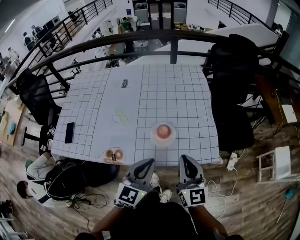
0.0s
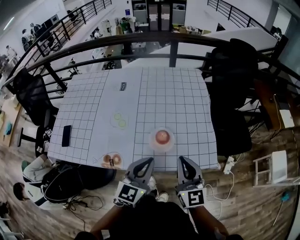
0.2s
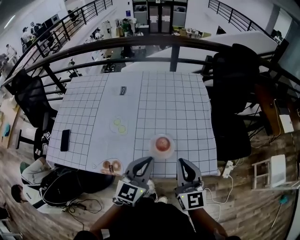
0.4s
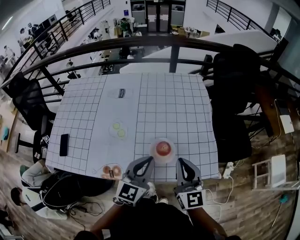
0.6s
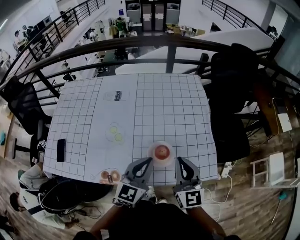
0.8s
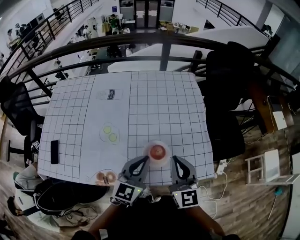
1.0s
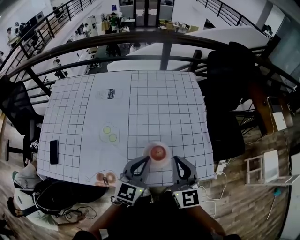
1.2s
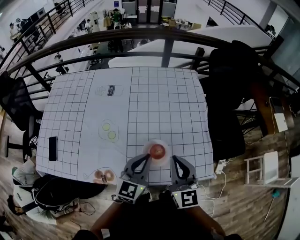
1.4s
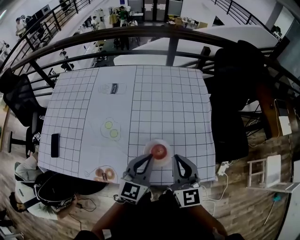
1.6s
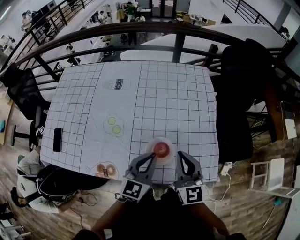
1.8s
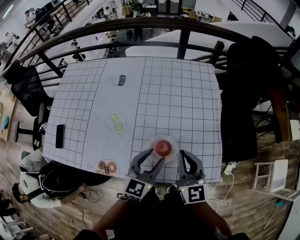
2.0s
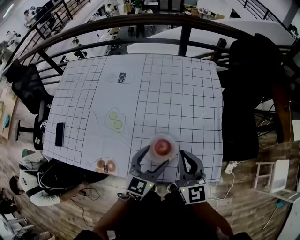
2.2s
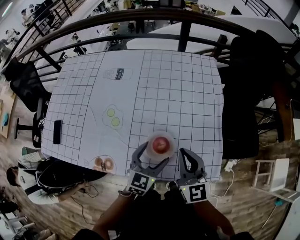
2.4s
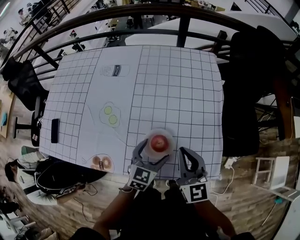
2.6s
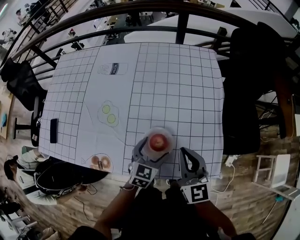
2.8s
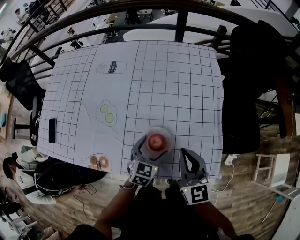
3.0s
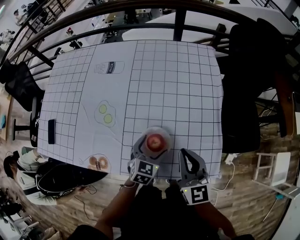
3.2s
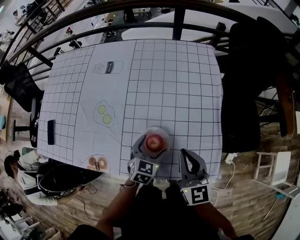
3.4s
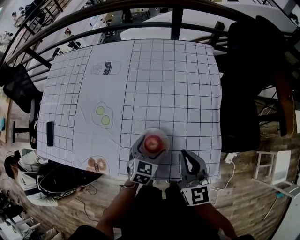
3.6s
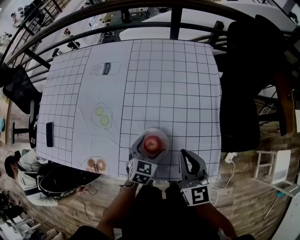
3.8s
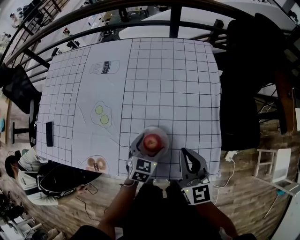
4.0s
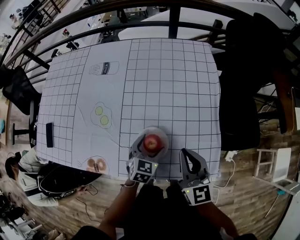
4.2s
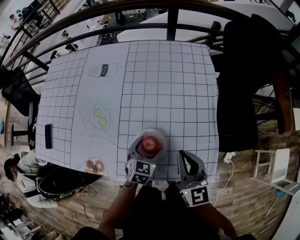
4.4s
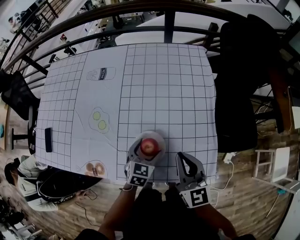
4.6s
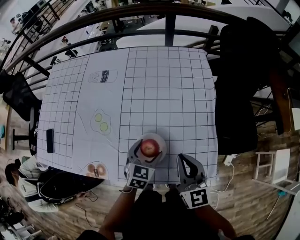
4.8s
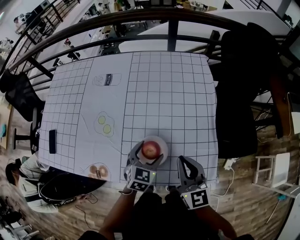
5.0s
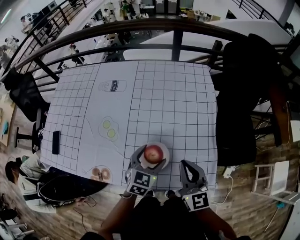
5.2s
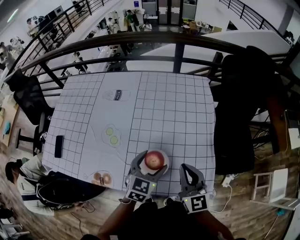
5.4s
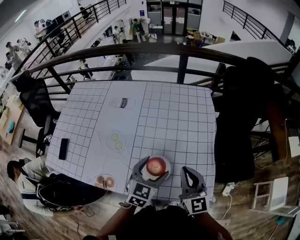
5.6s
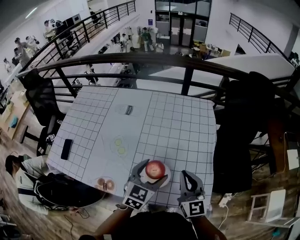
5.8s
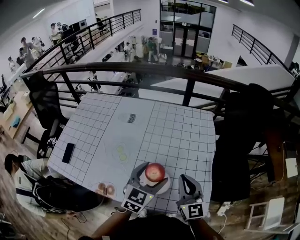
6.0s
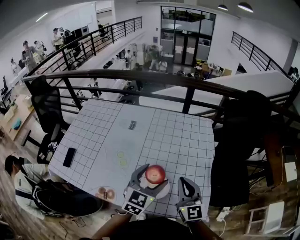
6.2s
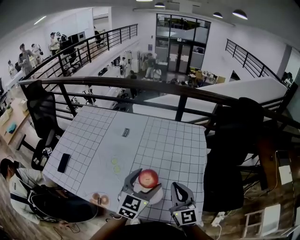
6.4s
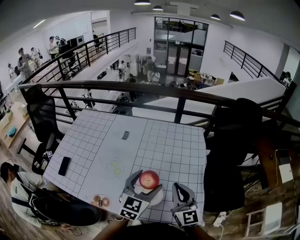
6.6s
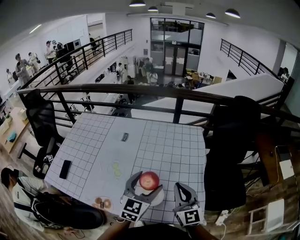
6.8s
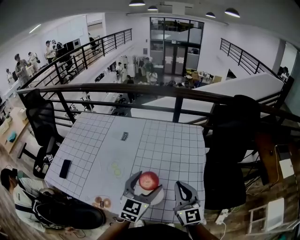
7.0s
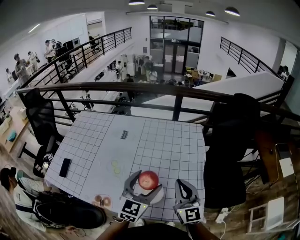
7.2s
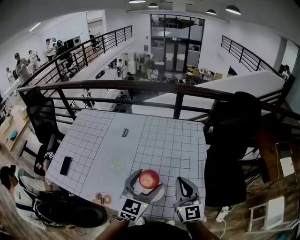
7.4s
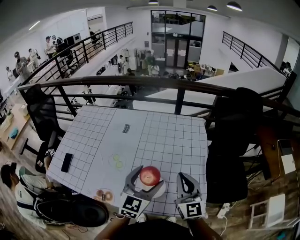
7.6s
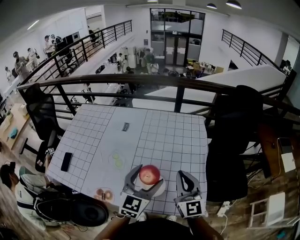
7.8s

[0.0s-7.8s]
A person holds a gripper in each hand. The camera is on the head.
0.0s to 1.6s: The grippers both shift forward by roughly 15 cm.
1.6s to 3.2s: The left gripper moves downward, roughly 20 cm, changes its angle by about 30 degrees, and opens its fingers. Meanwhile the right gripper heads downward and to the right, covering some 10 cm.
3.2s to 4.6s: There are only small adjustments of the grippers.
4.6s to 6.2s: The left gripper moves upward, some 25 cm, and swivels approximately 20 degrees; the right gripper is displaced upward by roughly 10 cm.
6.2s to 7.8s: The grippers move only a little.

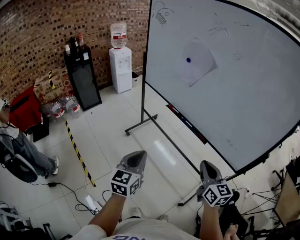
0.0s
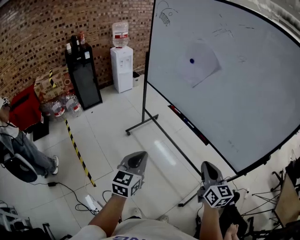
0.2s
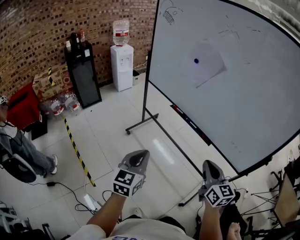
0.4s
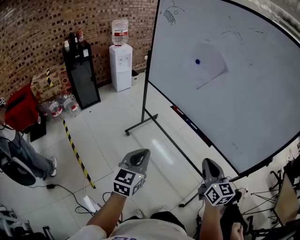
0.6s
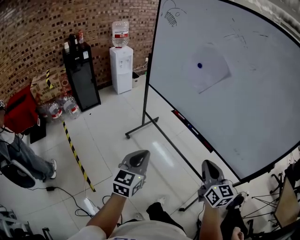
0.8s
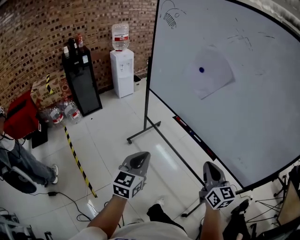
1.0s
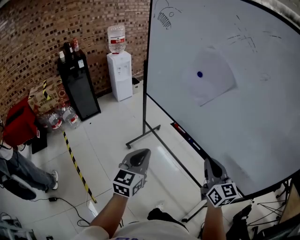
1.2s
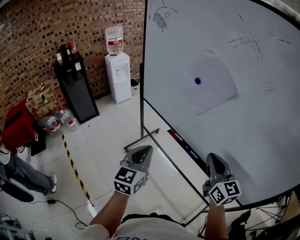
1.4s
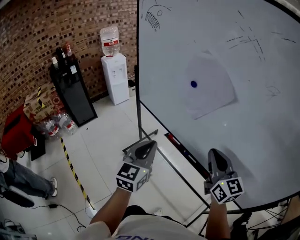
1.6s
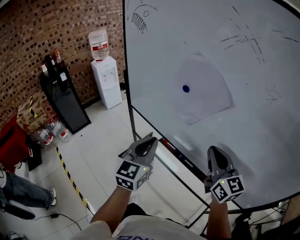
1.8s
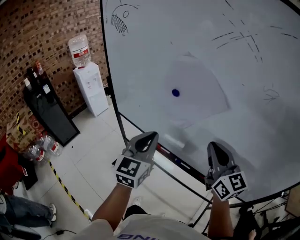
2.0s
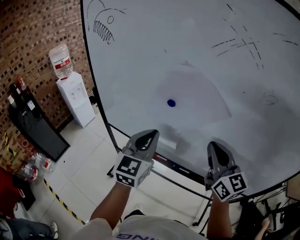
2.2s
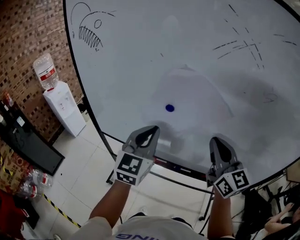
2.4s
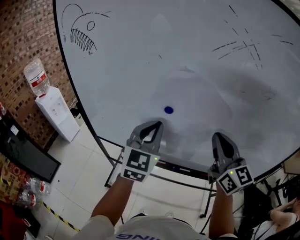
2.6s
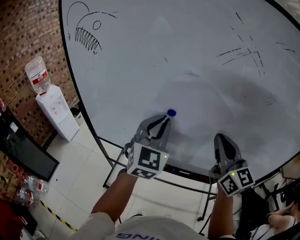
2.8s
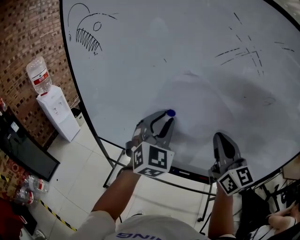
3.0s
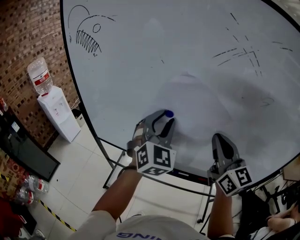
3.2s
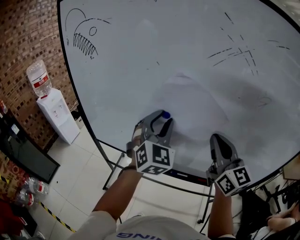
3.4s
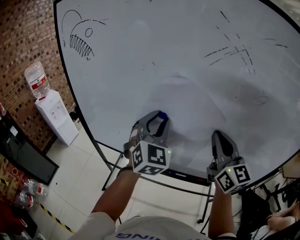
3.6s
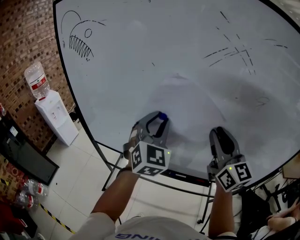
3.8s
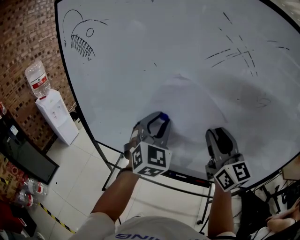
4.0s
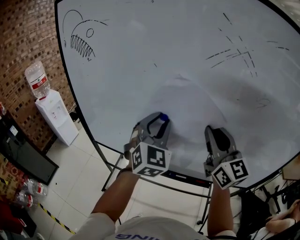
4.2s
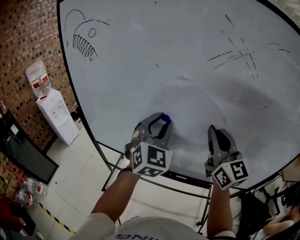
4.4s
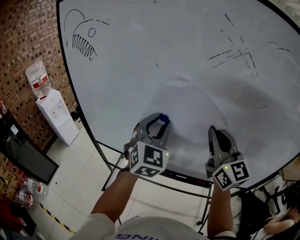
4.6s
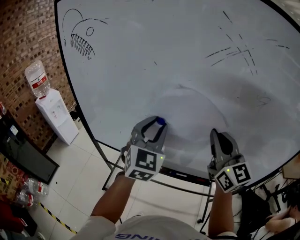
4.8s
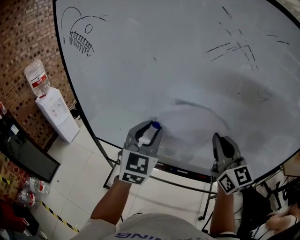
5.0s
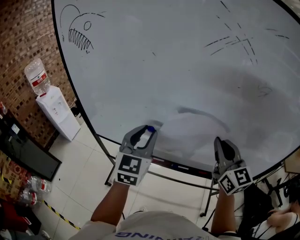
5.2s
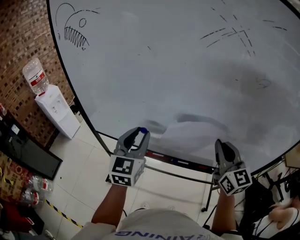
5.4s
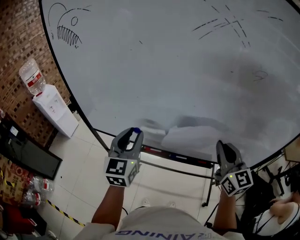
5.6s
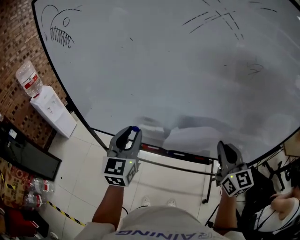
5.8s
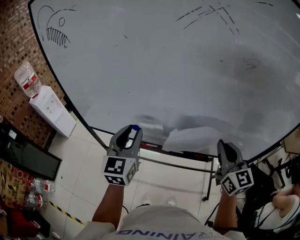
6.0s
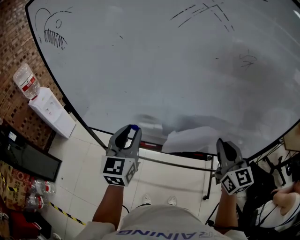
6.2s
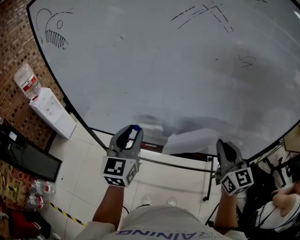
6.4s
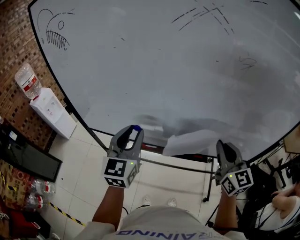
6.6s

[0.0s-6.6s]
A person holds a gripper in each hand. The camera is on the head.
0.0s to 1.6s: The two grippers go some 30 cm forward.
1.6s to 3.2s: The left gripper changes place by about 30 cm, turns by about 40 degrees, and opens. The right gripper changes place by approximately 15 cm, and rotates roughly 30 degrees.
3.2s to 5.0s: The right gripper opens, then closes once more.
5.0s to 6.6s: The left gripper moves downward and backward, some 10 cm; the right gripper heads downward, to the right and backward, covering some 15 cm.

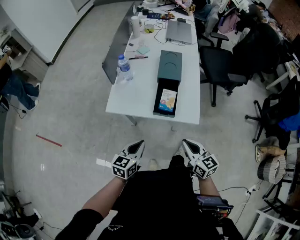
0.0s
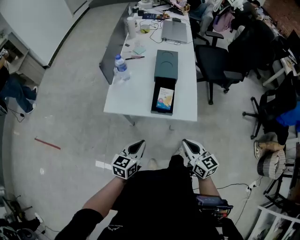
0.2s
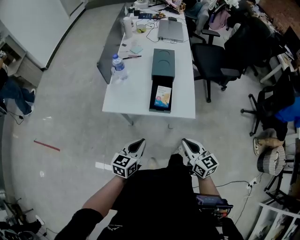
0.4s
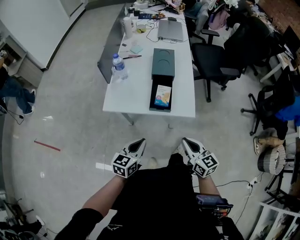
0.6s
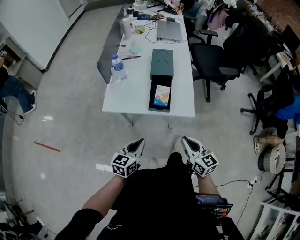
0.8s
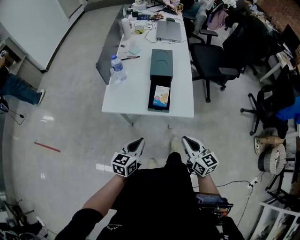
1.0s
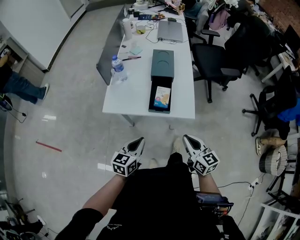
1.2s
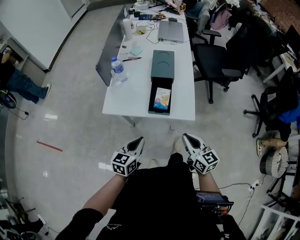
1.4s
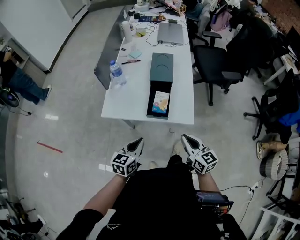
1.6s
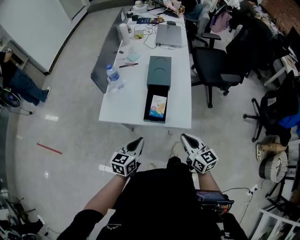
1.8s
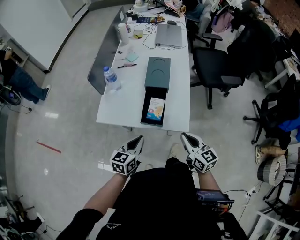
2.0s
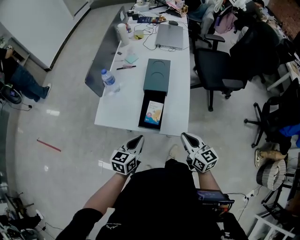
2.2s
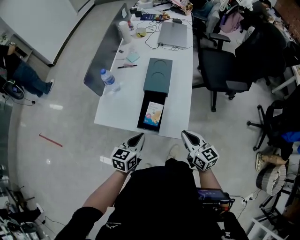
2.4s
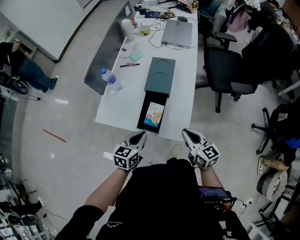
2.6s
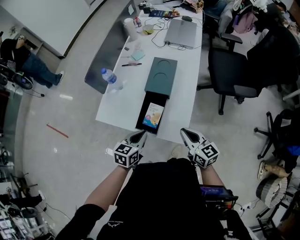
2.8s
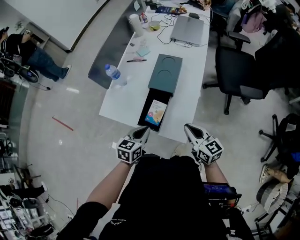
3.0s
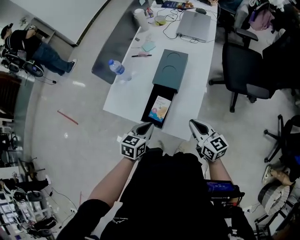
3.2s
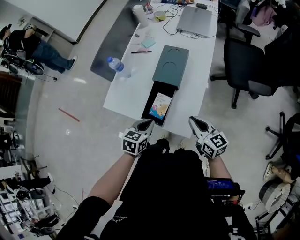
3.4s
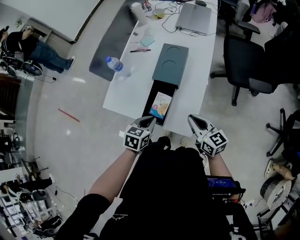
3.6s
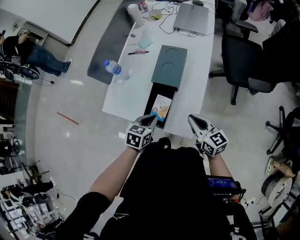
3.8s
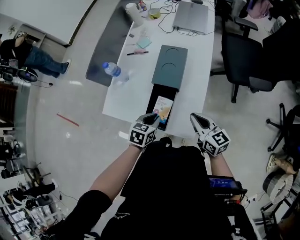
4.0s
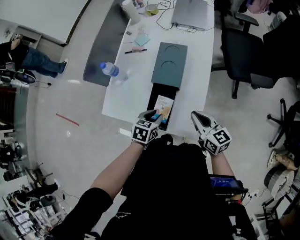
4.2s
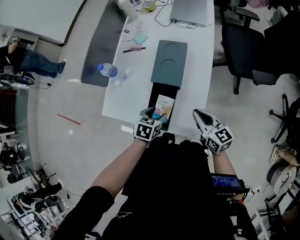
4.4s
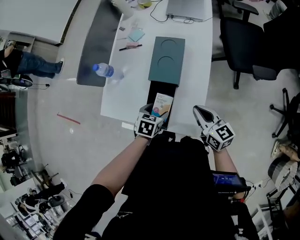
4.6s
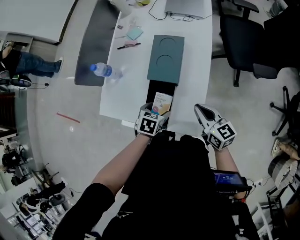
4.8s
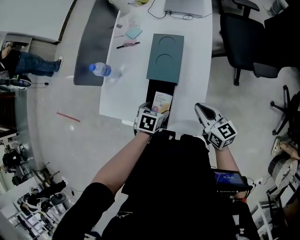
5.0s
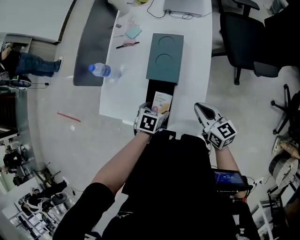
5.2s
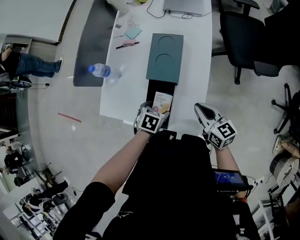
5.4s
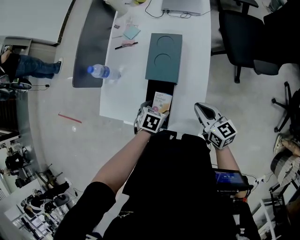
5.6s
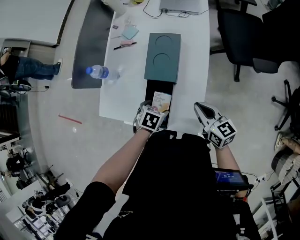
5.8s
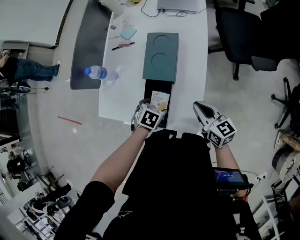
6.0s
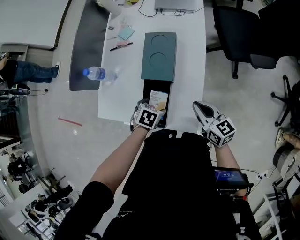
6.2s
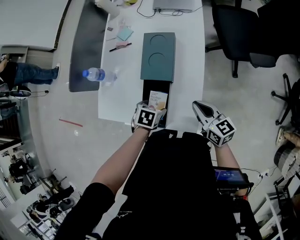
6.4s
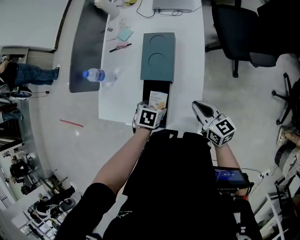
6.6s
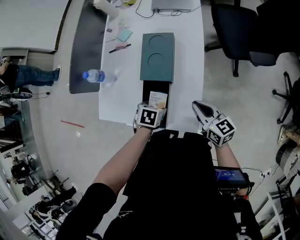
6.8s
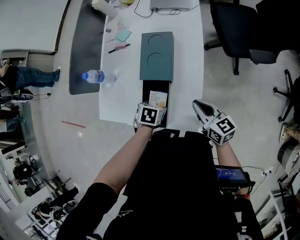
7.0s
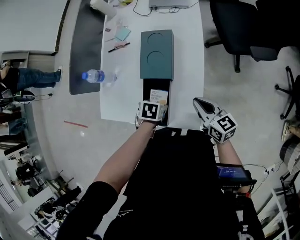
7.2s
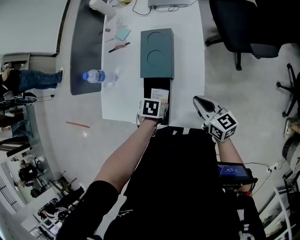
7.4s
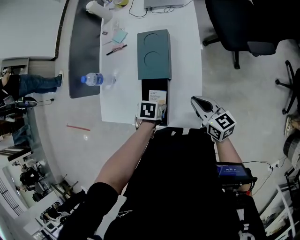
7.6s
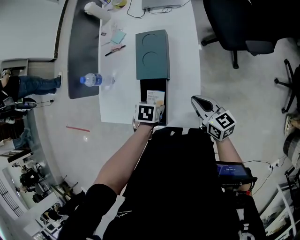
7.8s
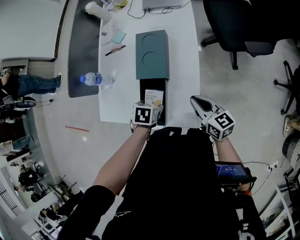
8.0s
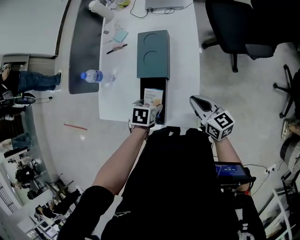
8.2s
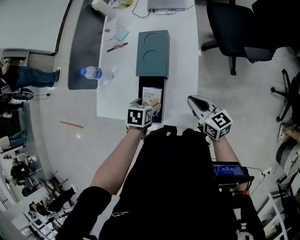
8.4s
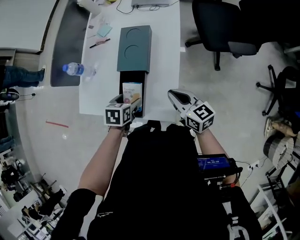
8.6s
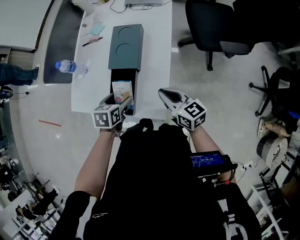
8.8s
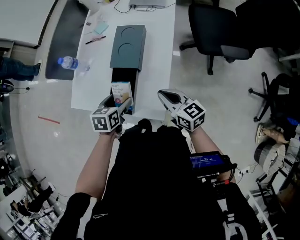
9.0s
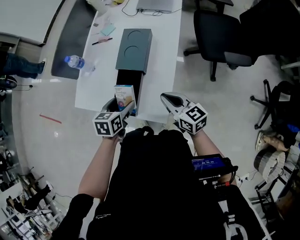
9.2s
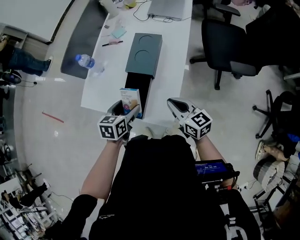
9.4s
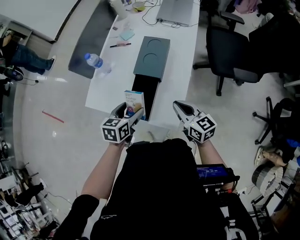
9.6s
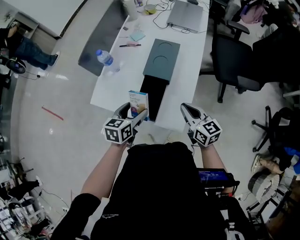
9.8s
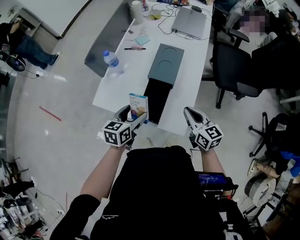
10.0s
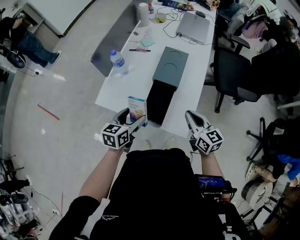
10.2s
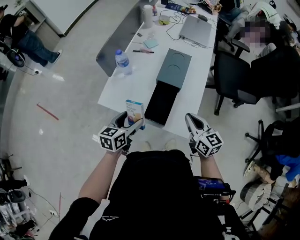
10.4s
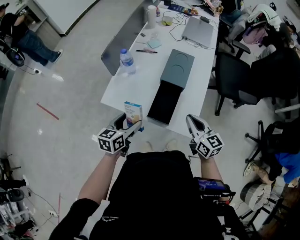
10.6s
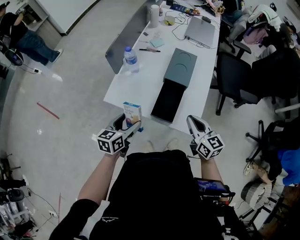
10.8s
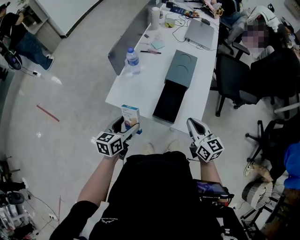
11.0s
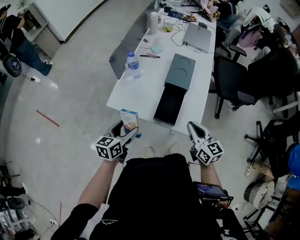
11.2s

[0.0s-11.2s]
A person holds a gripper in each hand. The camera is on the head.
0.0s to 1.6s: The grippers make only small movements.
1.6s to 3.2s: Both grippers travel together forward and to the right, some 20 cm.
3.2s to 4.8s: The right gripper moves forward, roughly 5 cm; the left gripper travels downward and forward by about 15 cm, turns by approximately 30 degrees, and opens.
4.8s to 8.0s: The grippers make only small movements.
8.0s to 9.6s: The left gripper moves upward, approximately 10 cm, and angles its fingers upward, by approximately 30 degrees.
9.6s to 11.2s: The left gripper shifts some 20 cm to the left and backward. Meanwhile the right gripper goes approximately 15 cm to the left, backward and upward.
